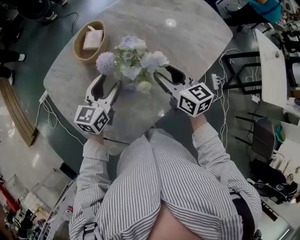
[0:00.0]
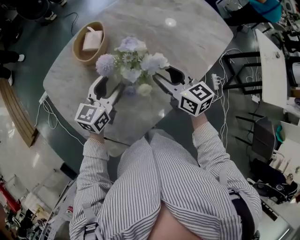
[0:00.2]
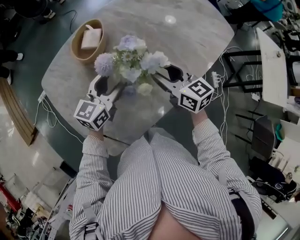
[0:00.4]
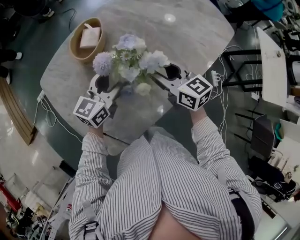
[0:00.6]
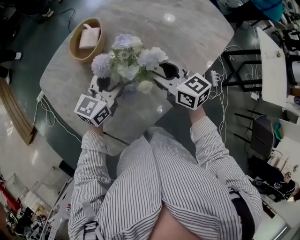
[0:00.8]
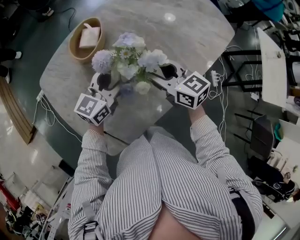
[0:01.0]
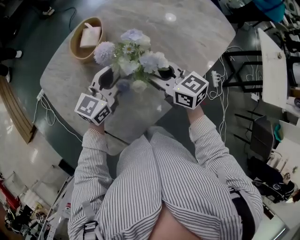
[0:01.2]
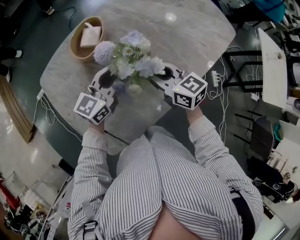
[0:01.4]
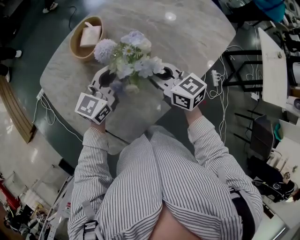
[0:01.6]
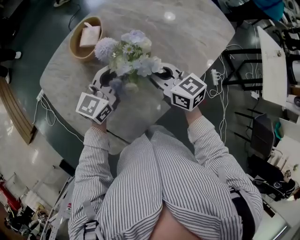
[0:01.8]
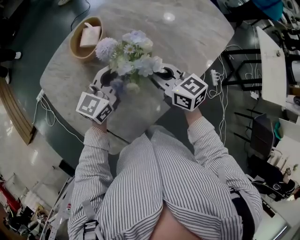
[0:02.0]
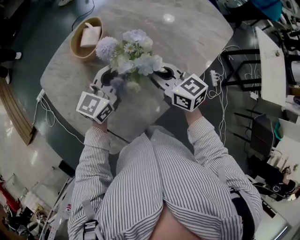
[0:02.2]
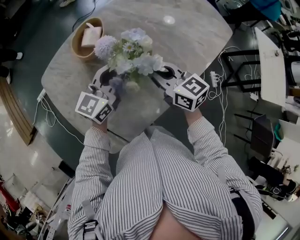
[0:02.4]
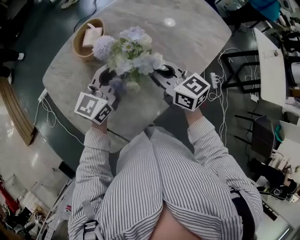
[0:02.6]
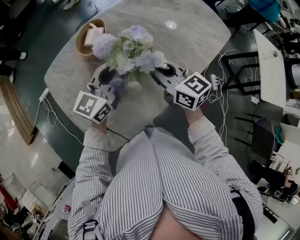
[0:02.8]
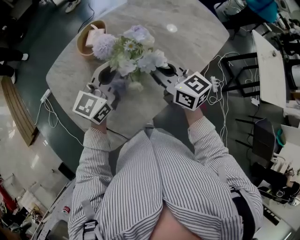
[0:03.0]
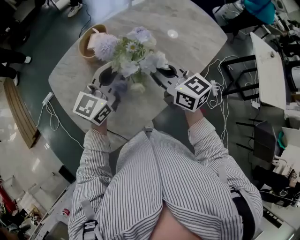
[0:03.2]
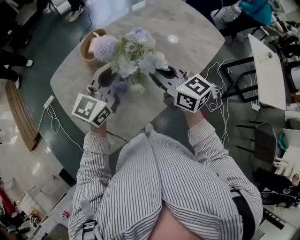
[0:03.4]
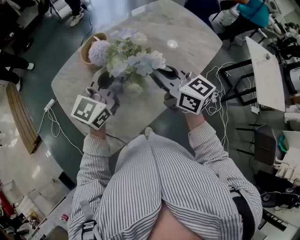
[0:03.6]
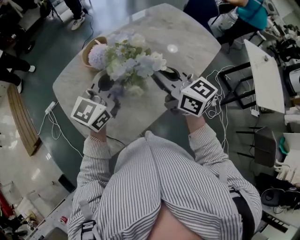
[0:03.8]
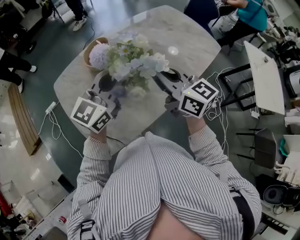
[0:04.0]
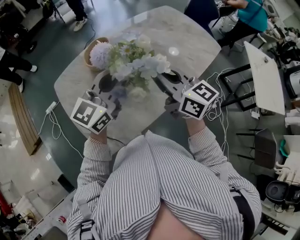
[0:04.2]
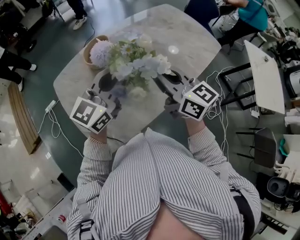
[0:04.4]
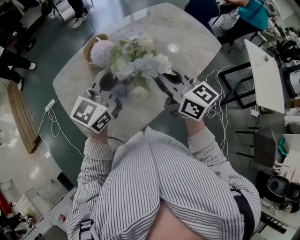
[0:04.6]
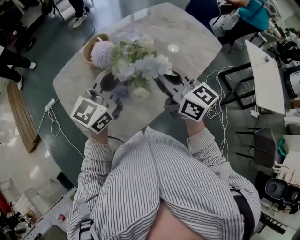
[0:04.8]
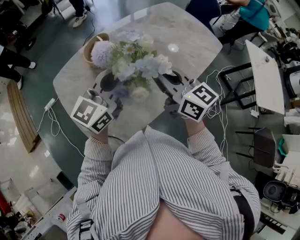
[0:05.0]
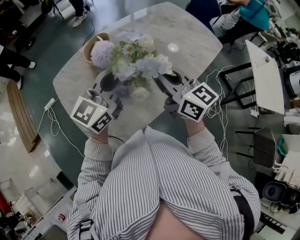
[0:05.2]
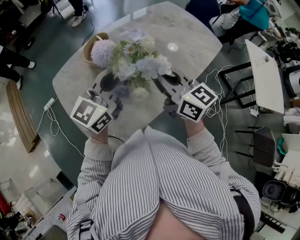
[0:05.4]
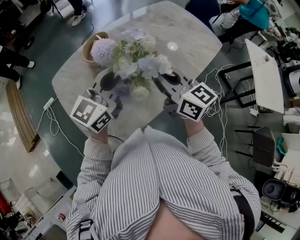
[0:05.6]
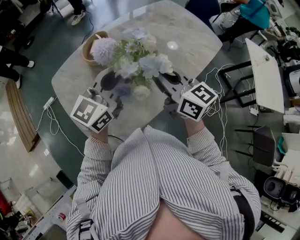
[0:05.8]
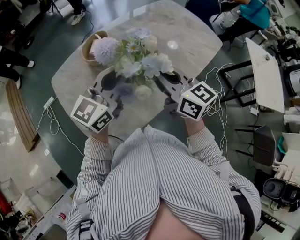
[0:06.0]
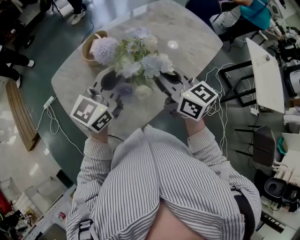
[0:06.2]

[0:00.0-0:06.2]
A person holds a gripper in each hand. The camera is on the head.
0:00.0 to 0:01.6: The right gripper shifts some 5 cm to the left, and closes; the left gripper ends up roughly 5 cm from where it was, and closes its fingers.
0:01.6 to 0:03.2: The right gripper is displaced upward by approximately 10 cm. Meanwhile the left gripper goes roughly 10 cm upward and backward.
0:03.2 to 0:04.6: The grippers both shift upward by roughly 5 cm.
0:04.6 to 0:06.2: There are only small adjustments of the grippers.

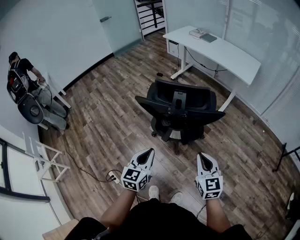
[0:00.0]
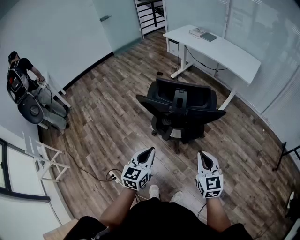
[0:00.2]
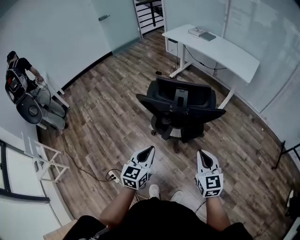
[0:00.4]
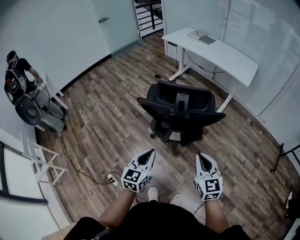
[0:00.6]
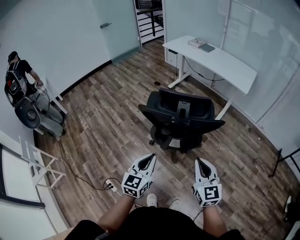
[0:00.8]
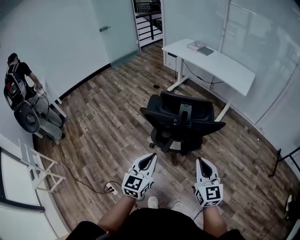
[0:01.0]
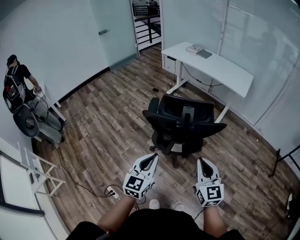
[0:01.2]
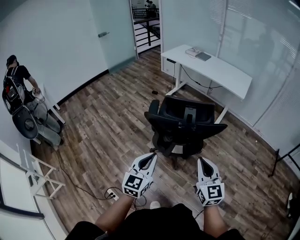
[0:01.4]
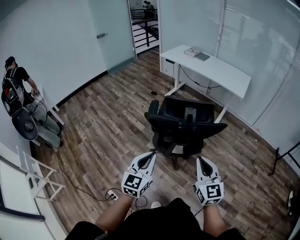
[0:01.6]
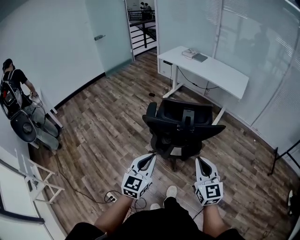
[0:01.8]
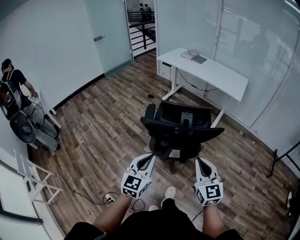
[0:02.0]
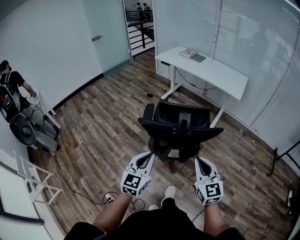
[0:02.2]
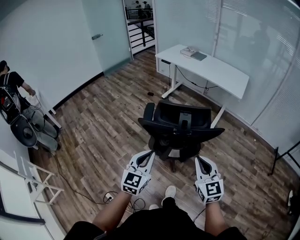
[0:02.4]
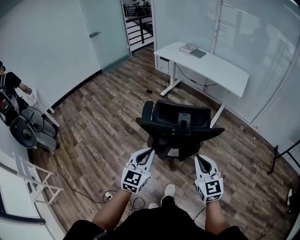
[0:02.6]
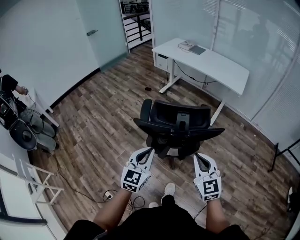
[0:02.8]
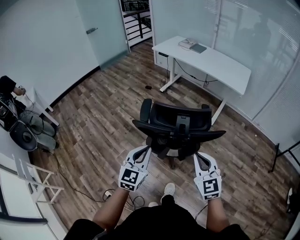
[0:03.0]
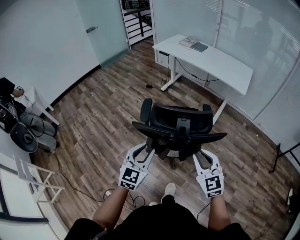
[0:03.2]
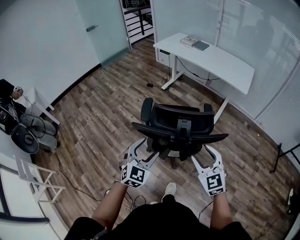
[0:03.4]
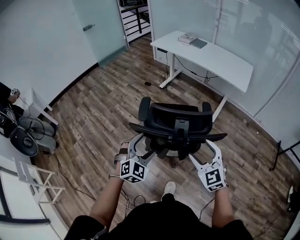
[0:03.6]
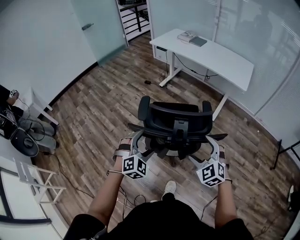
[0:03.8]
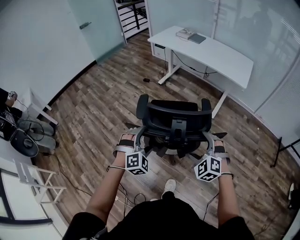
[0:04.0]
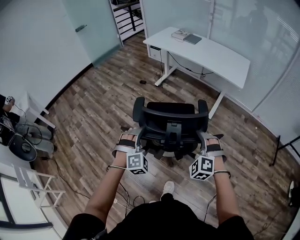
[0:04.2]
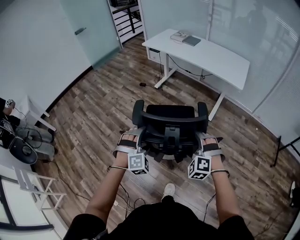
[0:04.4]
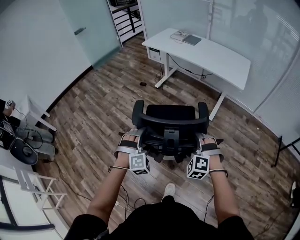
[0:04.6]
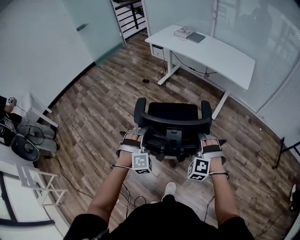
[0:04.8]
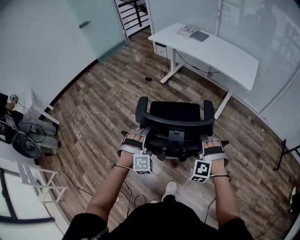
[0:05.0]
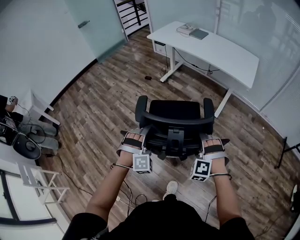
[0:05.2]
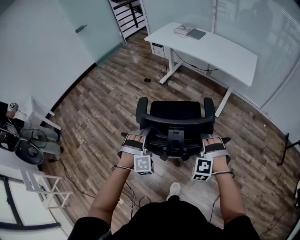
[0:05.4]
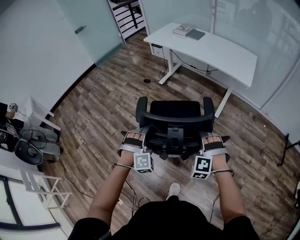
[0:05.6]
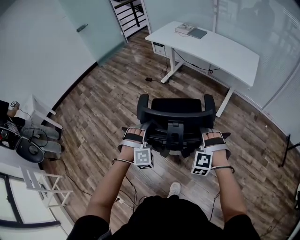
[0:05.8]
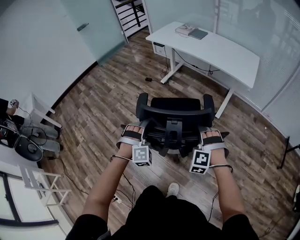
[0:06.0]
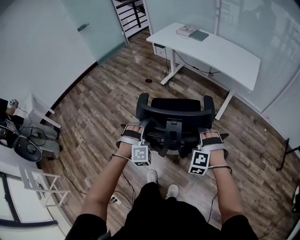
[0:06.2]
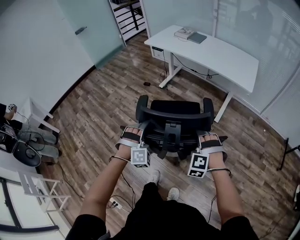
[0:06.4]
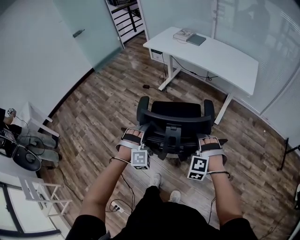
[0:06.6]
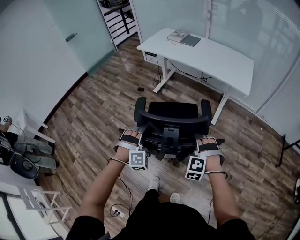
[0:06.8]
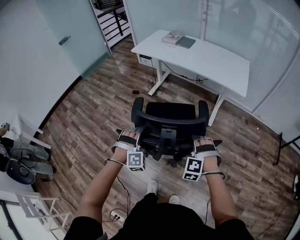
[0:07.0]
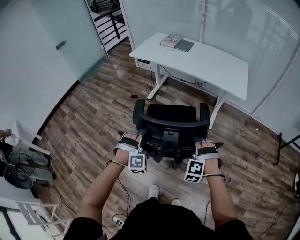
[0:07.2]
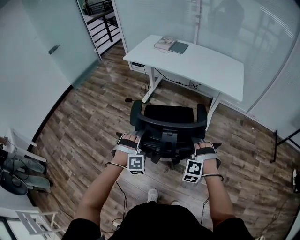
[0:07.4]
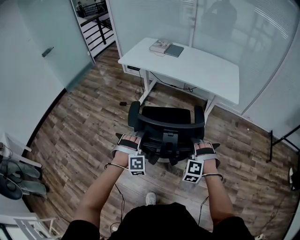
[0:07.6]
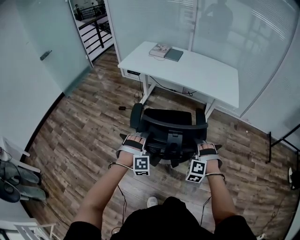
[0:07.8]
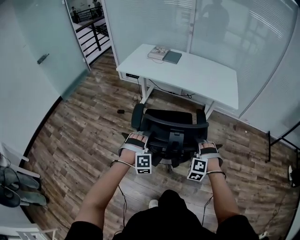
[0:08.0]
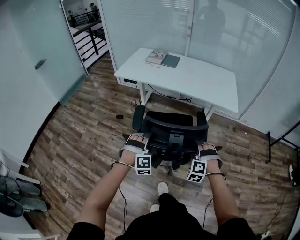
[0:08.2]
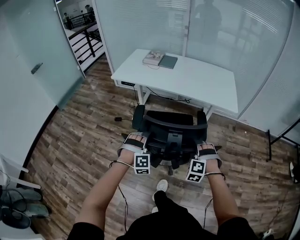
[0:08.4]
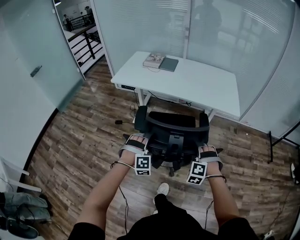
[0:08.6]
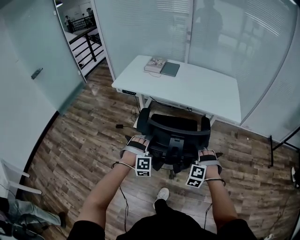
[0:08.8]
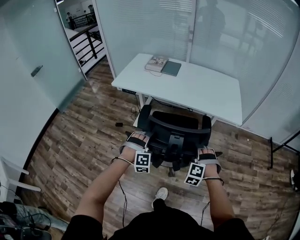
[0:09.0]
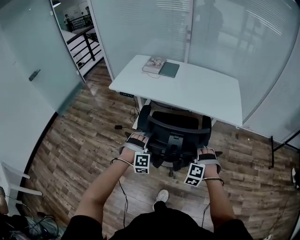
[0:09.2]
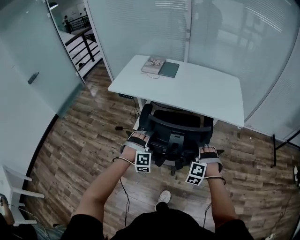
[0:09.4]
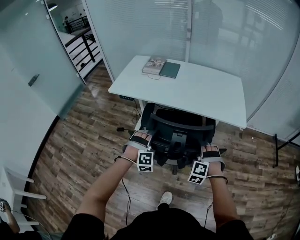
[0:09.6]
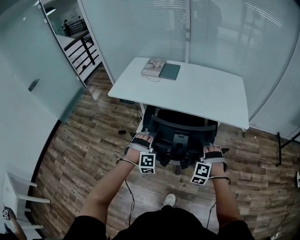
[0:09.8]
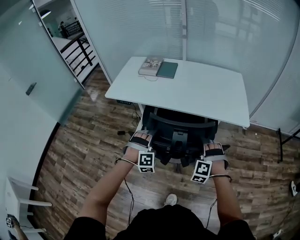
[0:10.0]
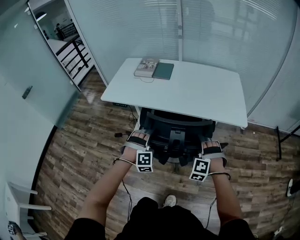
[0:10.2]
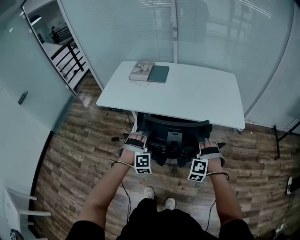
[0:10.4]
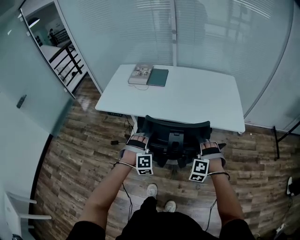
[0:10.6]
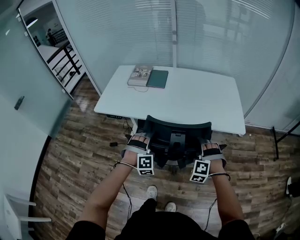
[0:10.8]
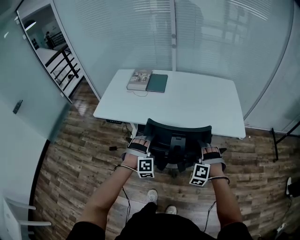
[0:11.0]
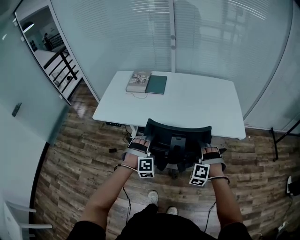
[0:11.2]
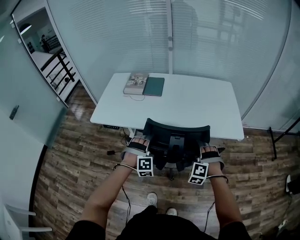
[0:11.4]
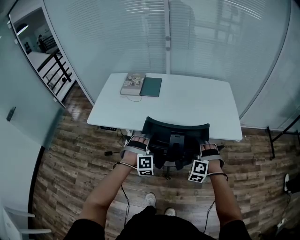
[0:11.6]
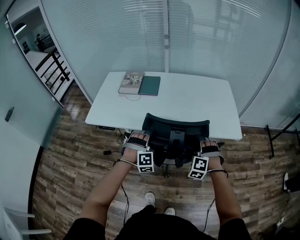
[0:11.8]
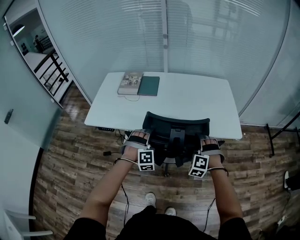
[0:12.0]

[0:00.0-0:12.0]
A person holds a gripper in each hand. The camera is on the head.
0:00.0 to 0:01.6: The grippers both shift upward and to the left by some 10 cm.
0:01.6 to 0:03.0: The two grippers go some 10 cm forward.
0:03.0 to 0:04.4: The two grippers go approximately 15 cm forward and downward. The right gripper rolls counterclockwise, seen from behind, by roughly 50 degrees, and opens, while the left gripper rolls clockwise, seen from behind, by about 60 degrees, and opens.
0:04.4 to 0:06.0: The two grippers go about 5 cm forward.
0:06.0 to 0:07.6: The grippers both shift forward by some 15 cm.
0:07.6 to 0:09.0: Both grippers move forward, some 20 cm.
0:09.0 to 0:10.4: The two grippers go about 15 cm forward.
0:10.4 to 0:12.0: Both grippers move forward, about 15 cm.

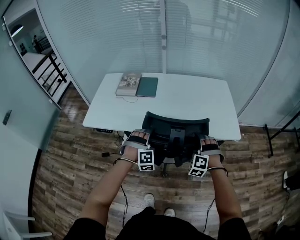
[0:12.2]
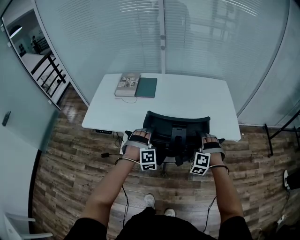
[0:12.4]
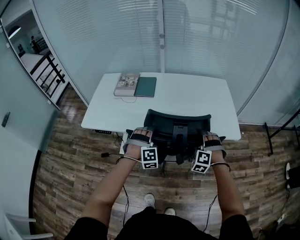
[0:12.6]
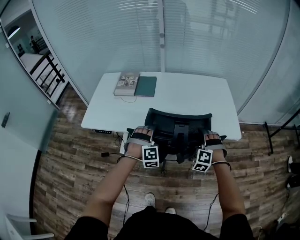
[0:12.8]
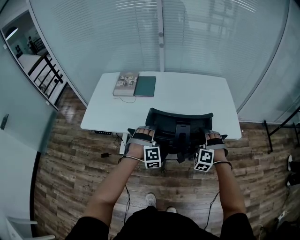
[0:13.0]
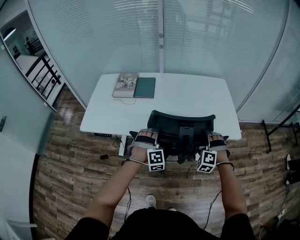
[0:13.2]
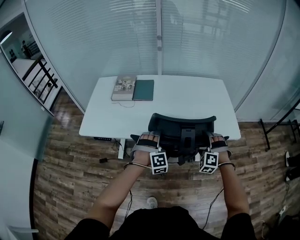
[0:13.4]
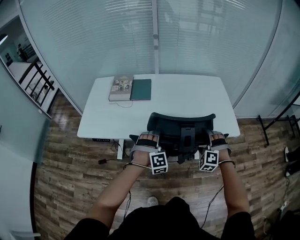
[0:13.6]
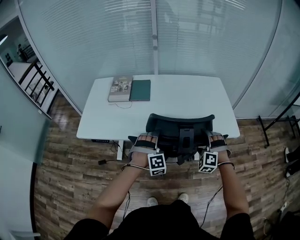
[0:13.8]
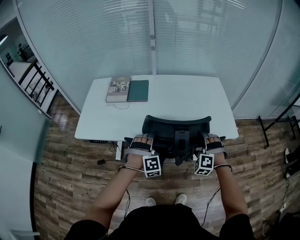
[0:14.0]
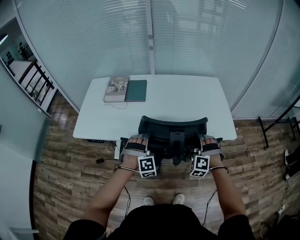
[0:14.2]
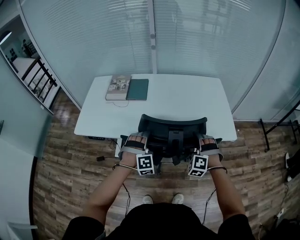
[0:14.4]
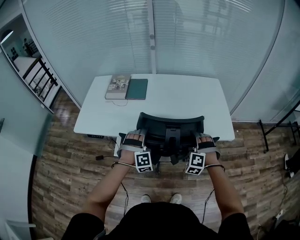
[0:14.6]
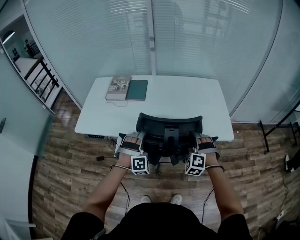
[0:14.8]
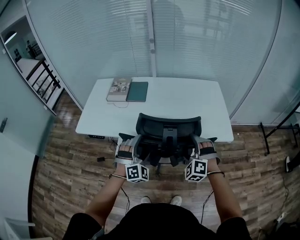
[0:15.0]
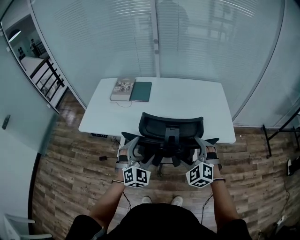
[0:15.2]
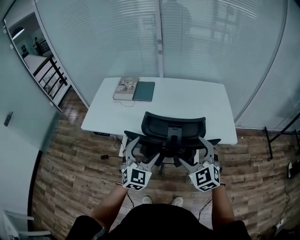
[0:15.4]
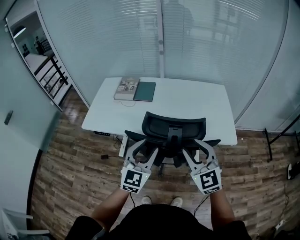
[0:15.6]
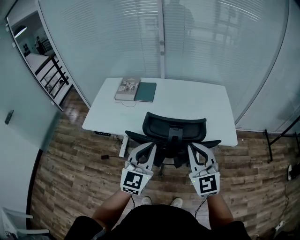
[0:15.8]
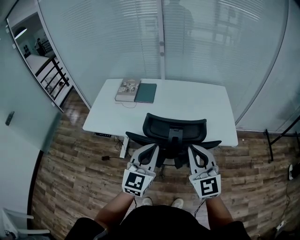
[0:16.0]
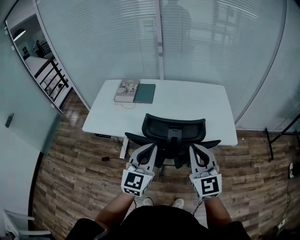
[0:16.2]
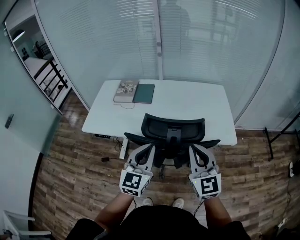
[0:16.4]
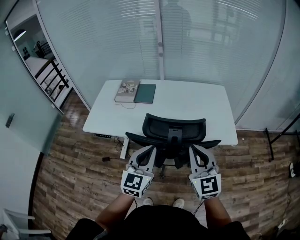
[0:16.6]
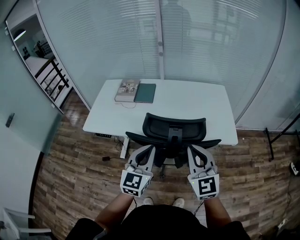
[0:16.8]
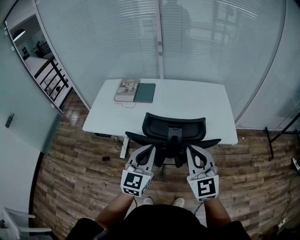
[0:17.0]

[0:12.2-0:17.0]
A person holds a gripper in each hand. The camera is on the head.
0:12.2 to 0:13.8: There are only small adjustments of the grippers.
0:13.8 to 0:15.4: The two grippers go about 15 cm upward and backward. The left gripper rotates around the line of its fingers by about 50 degrees, counterclockwise from behind, while the right gripper rotates about 50 degrees.
0:15.4 to 0:17.0: The right gripper is displaced upward by roughly 10 cm, changes its angle by some 20 degrees, and closes; the left gripper ends up roughly 5 cm from where it was, rotates some 20 degrees, and closes its fingers.
